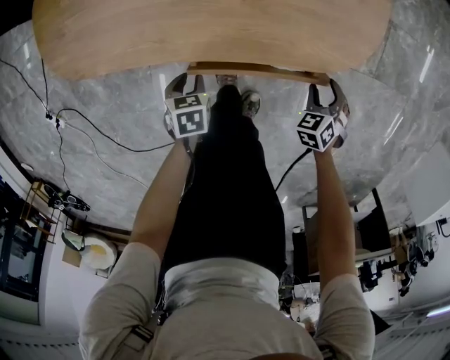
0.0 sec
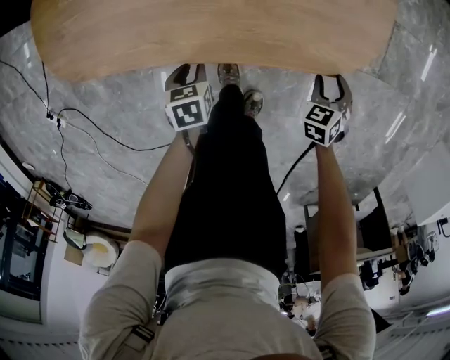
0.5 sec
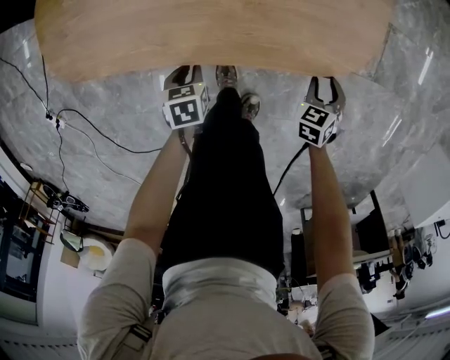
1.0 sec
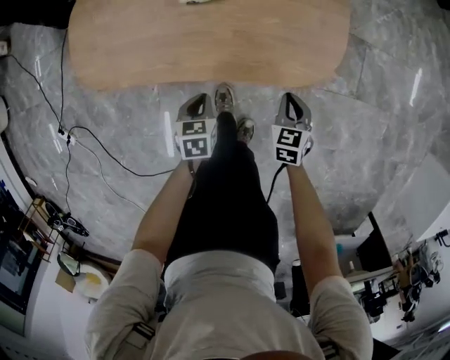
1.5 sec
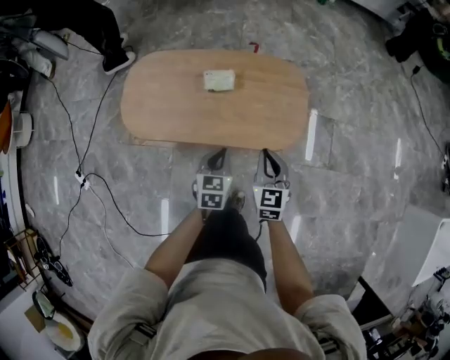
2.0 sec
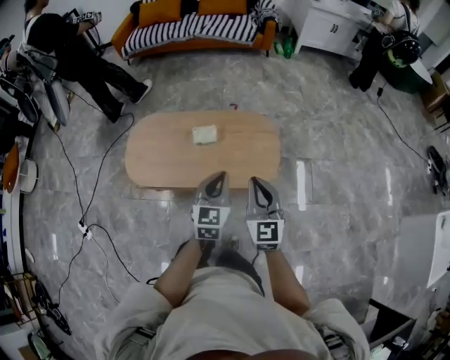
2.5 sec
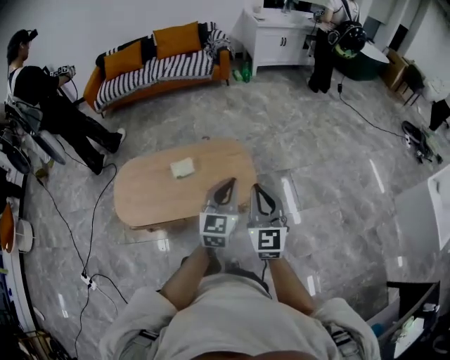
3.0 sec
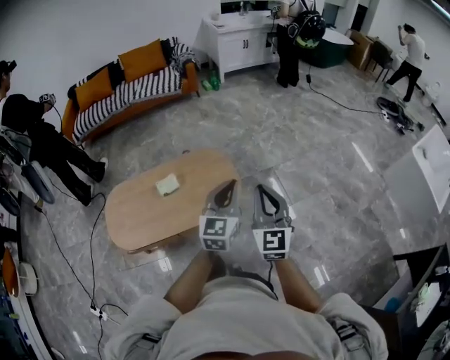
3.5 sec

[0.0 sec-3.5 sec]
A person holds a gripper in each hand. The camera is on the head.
0.0 sec to 2.0 sec: Both grippers move upward, roughly 35 cm. The left gripper tips its fingers upward by approximately 40 degrees, and closes its fingers; the right gripper tips its fingers upward by about 40 degrees, and closes its fingers.
2.0 sec to 3.5 sec: Both grippers travel together upward and to the right, approximately 35 cm. The right gripper rotates about 40 degrees, while the left gripper points its fingers some 40 degrees further upward.

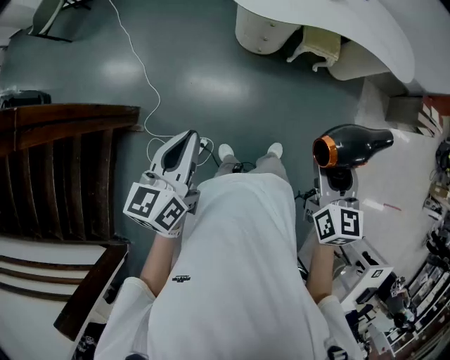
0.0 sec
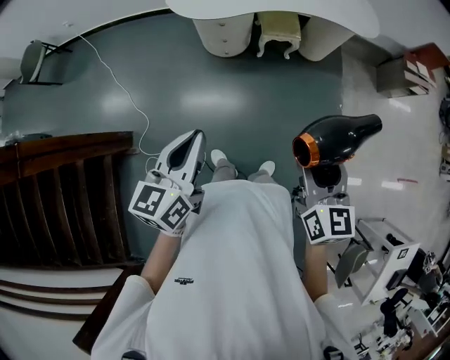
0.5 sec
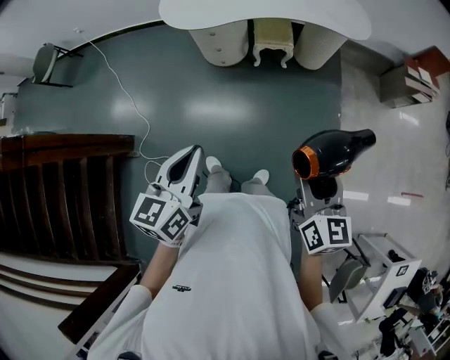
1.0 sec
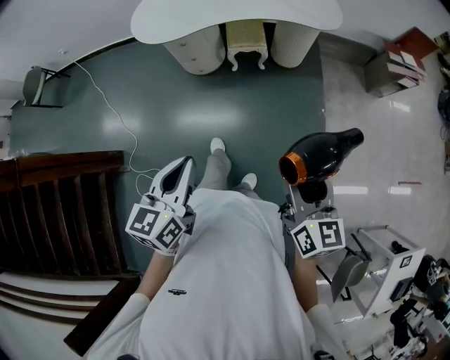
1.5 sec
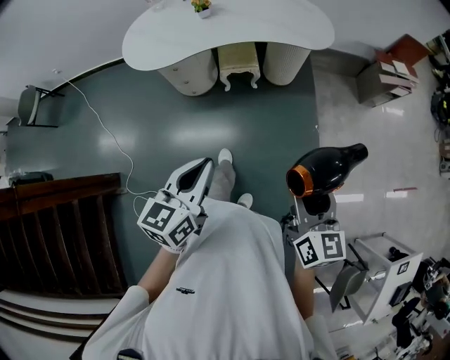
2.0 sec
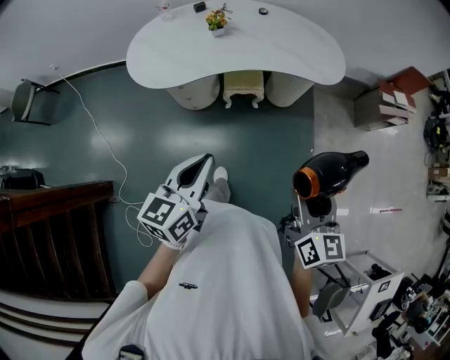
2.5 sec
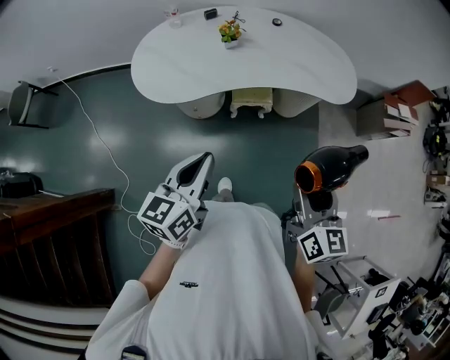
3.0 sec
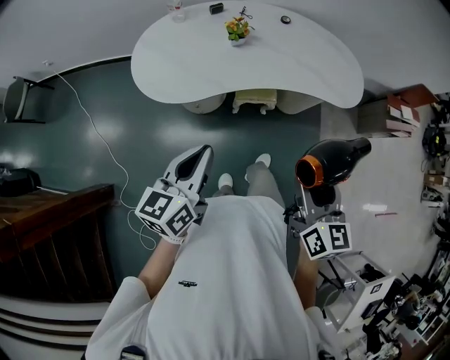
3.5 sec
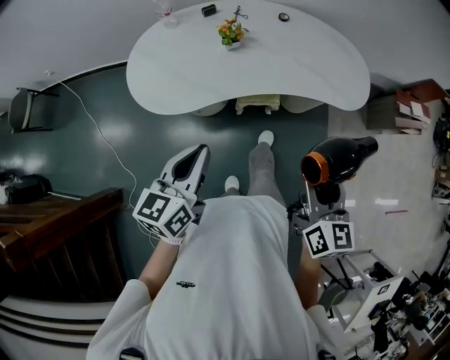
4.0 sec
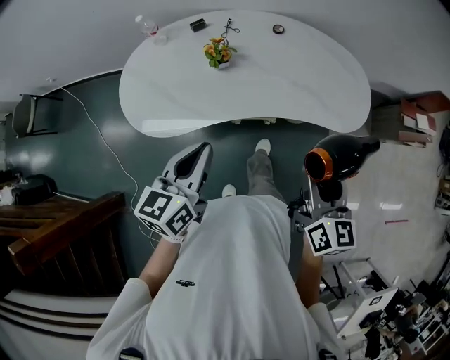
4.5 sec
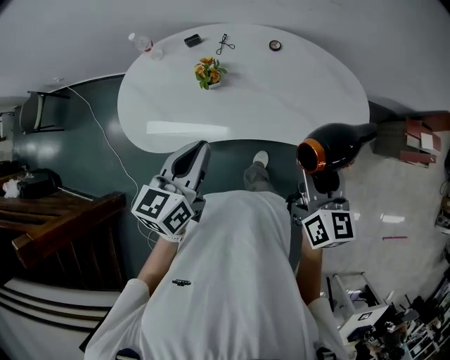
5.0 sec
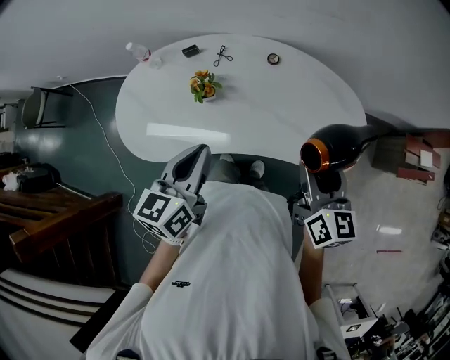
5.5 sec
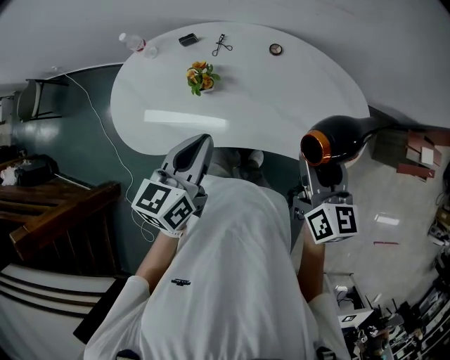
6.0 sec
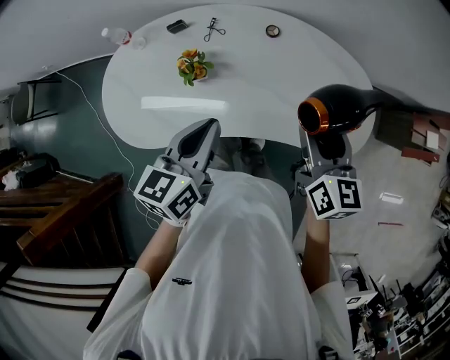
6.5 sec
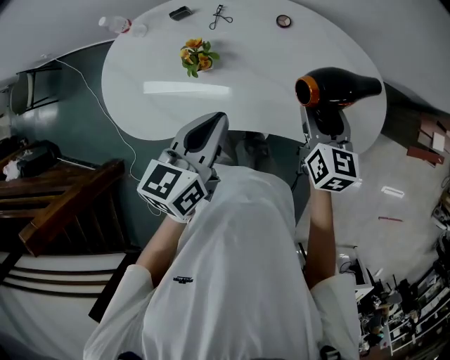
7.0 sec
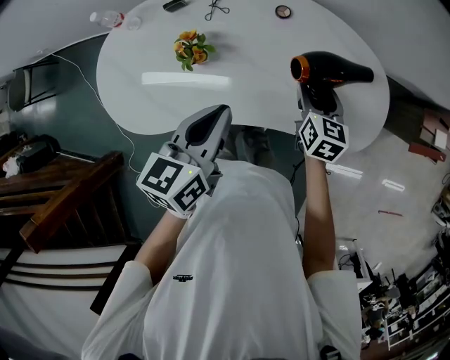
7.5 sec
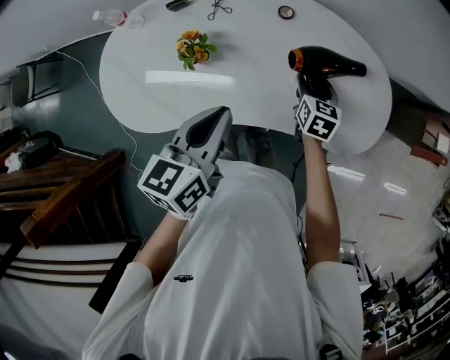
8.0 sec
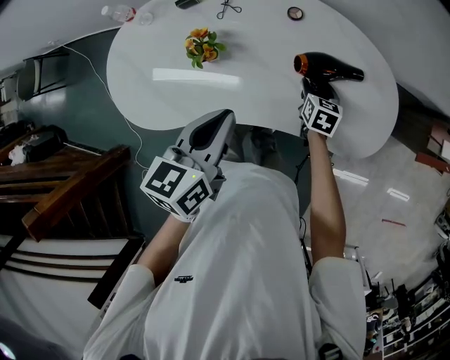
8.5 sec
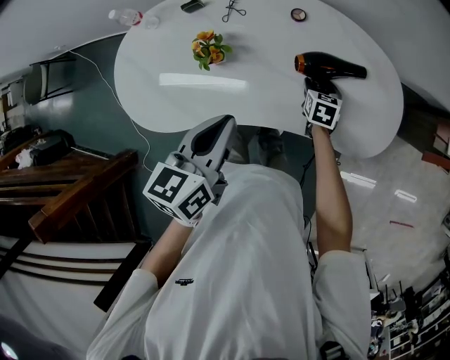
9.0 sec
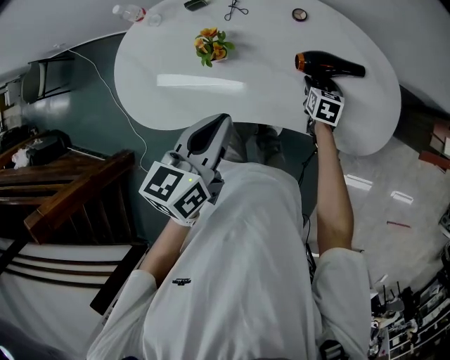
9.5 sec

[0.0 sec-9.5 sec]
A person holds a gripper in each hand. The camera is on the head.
0.0 sec to 2.0 sec: The grippers both shift to the right by approximately 40 cm. The left gripper turns by about 20 degrees.
2.0 sec to 4.0 sec: The two grippers go roughly 35 cm forward and to the left.
4.0 sec to 5.5 sec: The right gripper shifts some 30 cm forward. Meanwhile the left gripper goes roughly 30 cm forward and to the right.
5.5 sec to 7.5 sec: The right gripper goes about 25 cm downward and forward, and changes its angle by about 20 degrees. The left gripper is displaced forward and downward by about 10 cm.
7.5 sec to 9.5 sec: The left gripper changes place by about 5 cm. Meanwhile the right gripper travels downward by about 15 cm.

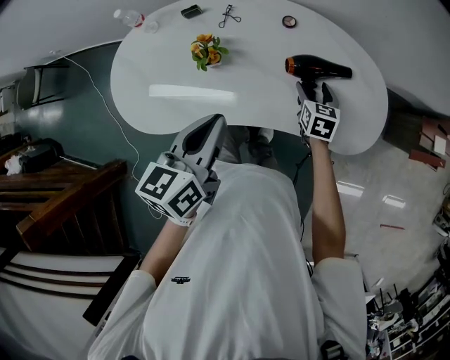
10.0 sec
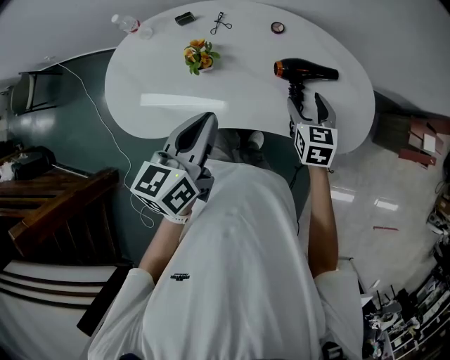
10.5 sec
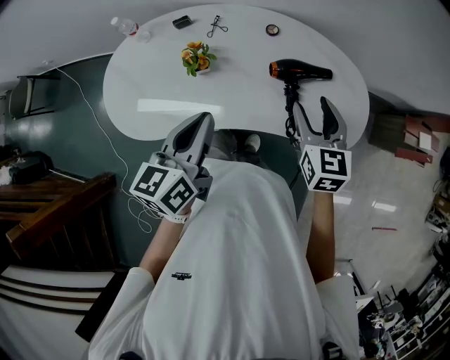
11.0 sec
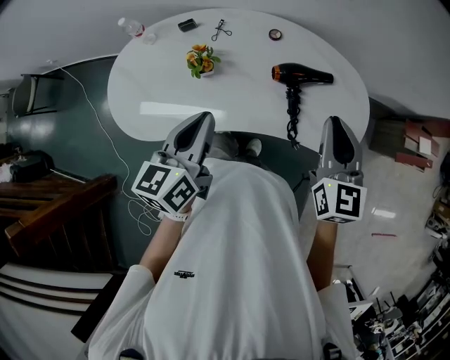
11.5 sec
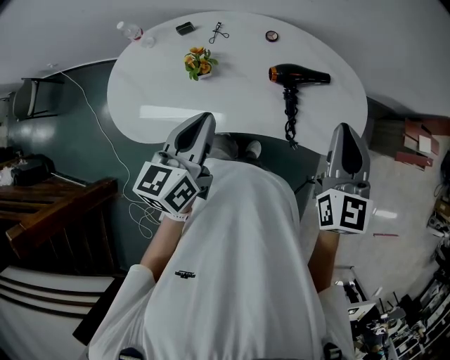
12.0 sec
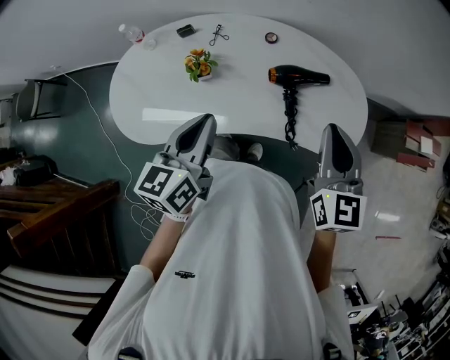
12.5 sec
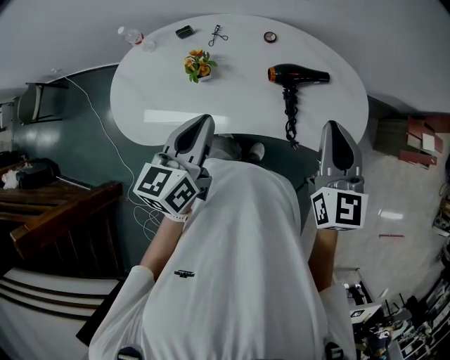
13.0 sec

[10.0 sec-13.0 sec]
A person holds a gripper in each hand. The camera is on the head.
10.0 sec to 11.5 sec: The right gripper moves upward, about 30 cm, turns by roughly 30 degrees, and closes its fingers.
11.5 sec to 13.0 sec: The grippers make only small movements.

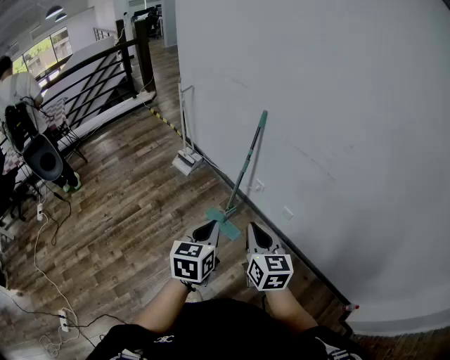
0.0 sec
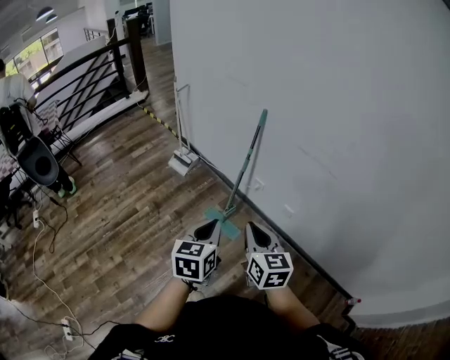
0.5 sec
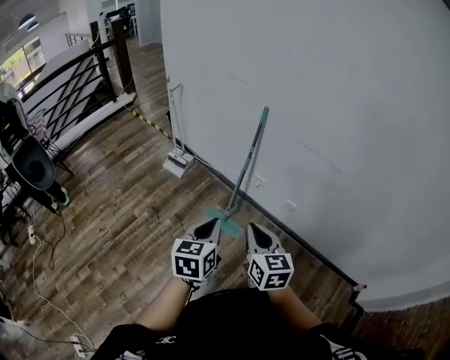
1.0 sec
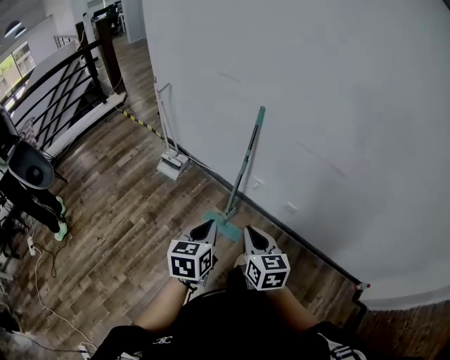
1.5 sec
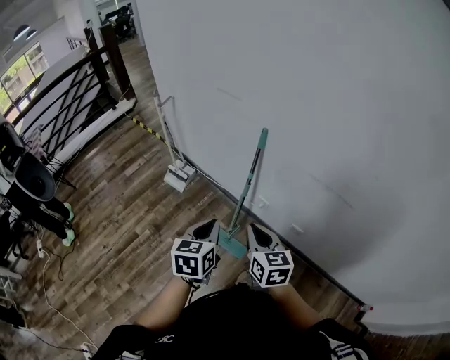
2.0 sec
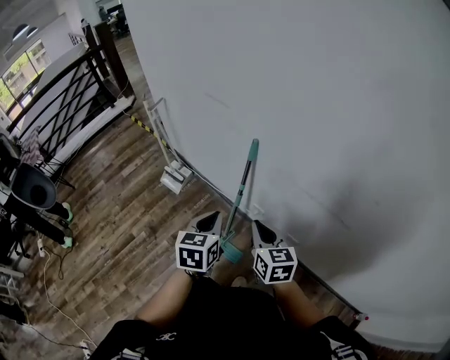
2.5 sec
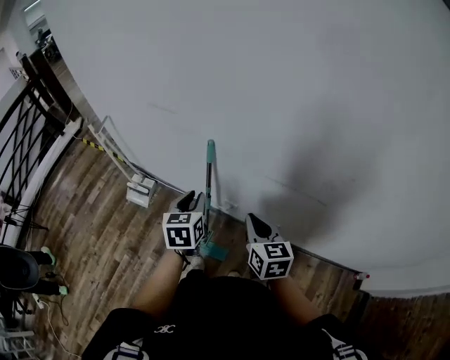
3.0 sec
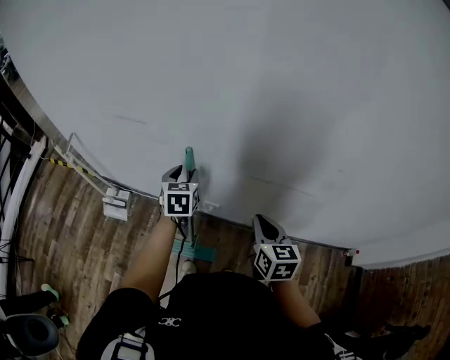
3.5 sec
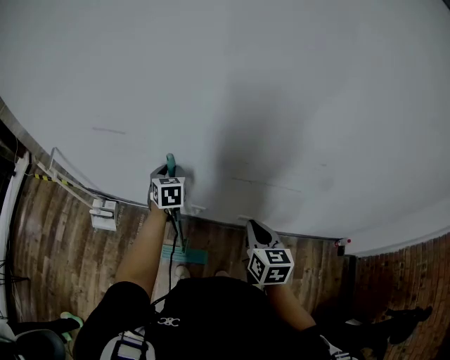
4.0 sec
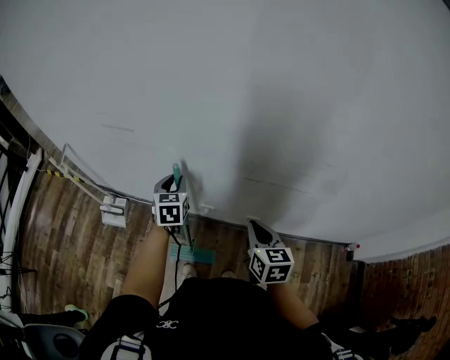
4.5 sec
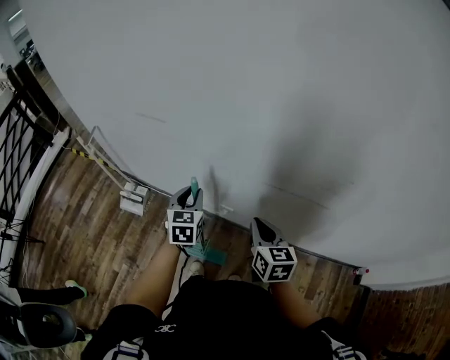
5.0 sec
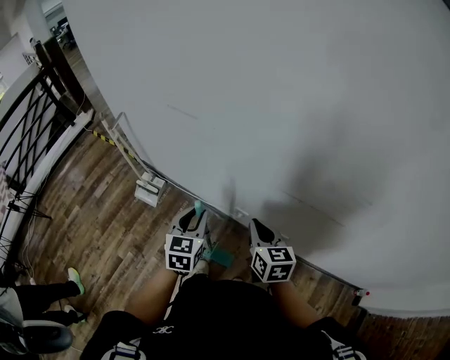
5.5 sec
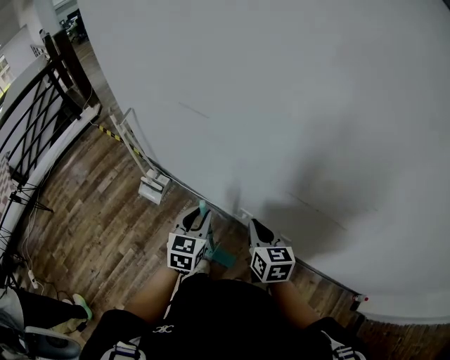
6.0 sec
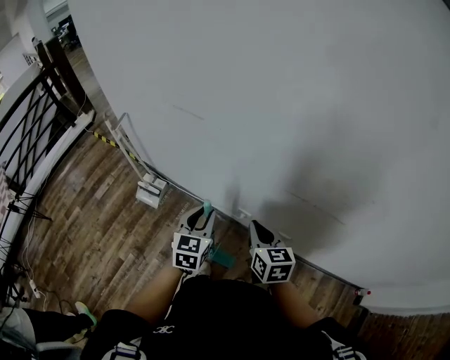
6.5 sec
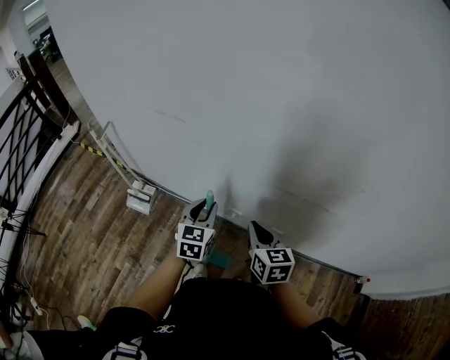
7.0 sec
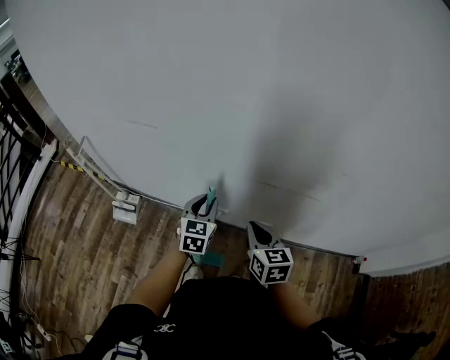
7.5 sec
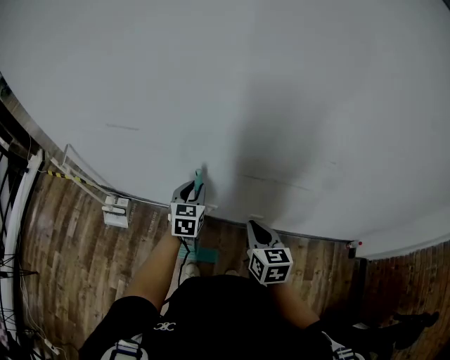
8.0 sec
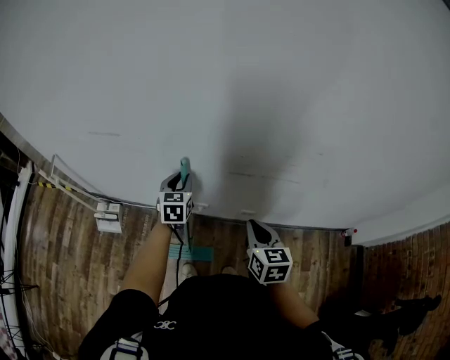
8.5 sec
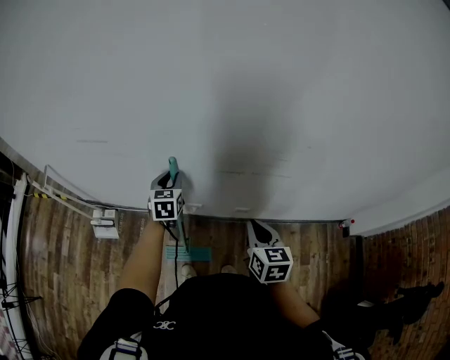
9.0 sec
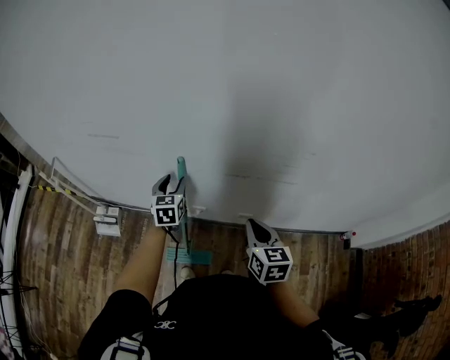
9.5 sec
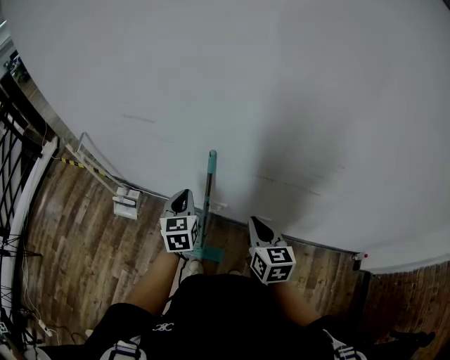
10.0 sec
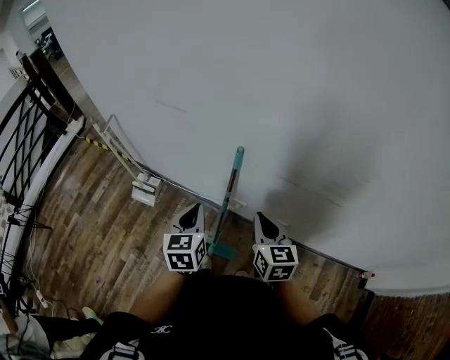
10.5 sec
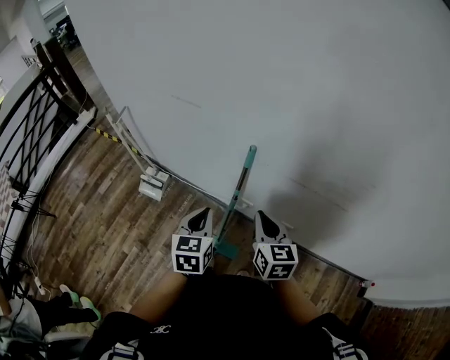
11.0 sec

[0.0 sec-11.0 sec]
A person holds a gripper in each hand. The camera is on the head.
0.0 sec to 2.0 sec: The two grippers go about 25 cm forward.
2.0 sec to 3.5 sec: The left gripper is displaced forward by some 35 cm, rotates approximately 20 degrees, and opens up. The right gripper is displaced to the right and forward by some 20 cm, and turns by approximately 30 degrees.
3.5 sec to 5.5 sec: The left gripper shifts about 15 cm backward and to the left, while the right gripper is displaced to the left by about 10 cm.
5.5 sec to 7.5 sec: The left gripper shifts approximately 10 cm to the right and forward, while the right gripper changes place by approximately 5 cm.
7.5 sec to 9.0 sec: The left gripper moves forward, approximately 10 cm. The right gripper shifts roughly 10 cm to the right.
9.0 sec to 11.0 sec: The right gripper heads to the left, covering approximately 15 cm, and changes its angle by some 30 degrees, while the left gripper moves backward and to the left, roughly 25 cm, and closes.
